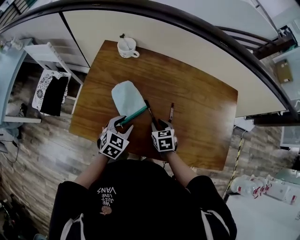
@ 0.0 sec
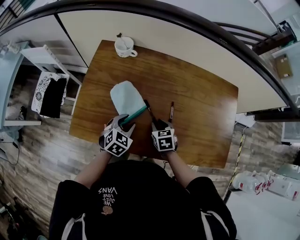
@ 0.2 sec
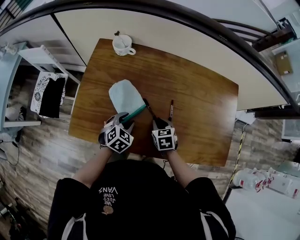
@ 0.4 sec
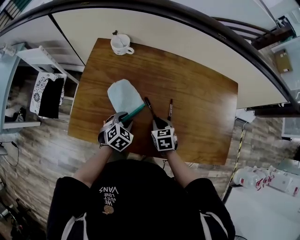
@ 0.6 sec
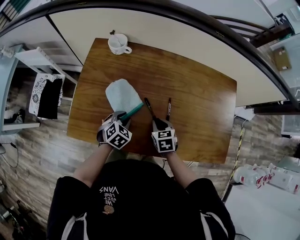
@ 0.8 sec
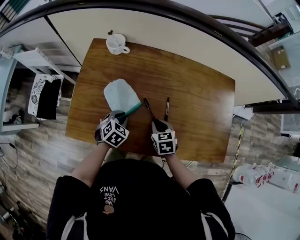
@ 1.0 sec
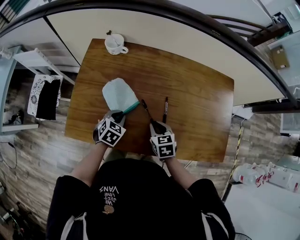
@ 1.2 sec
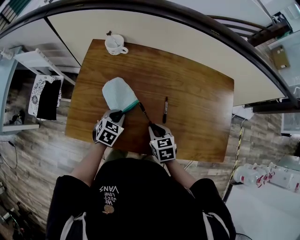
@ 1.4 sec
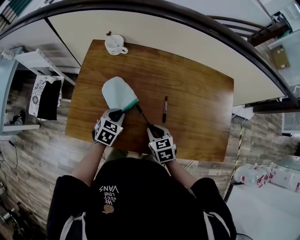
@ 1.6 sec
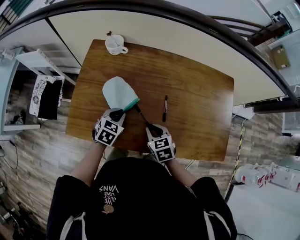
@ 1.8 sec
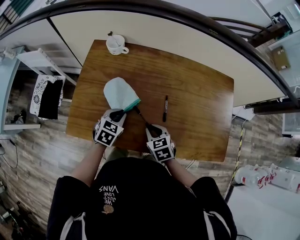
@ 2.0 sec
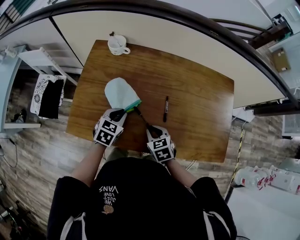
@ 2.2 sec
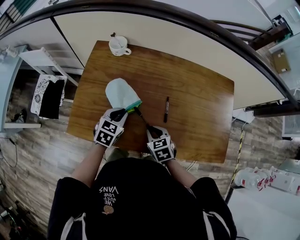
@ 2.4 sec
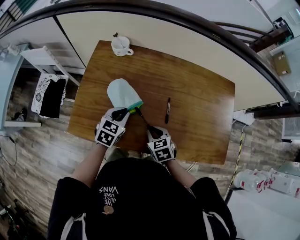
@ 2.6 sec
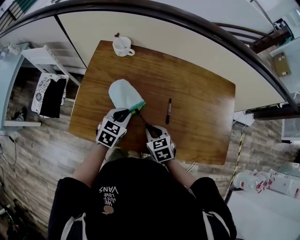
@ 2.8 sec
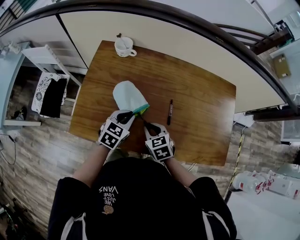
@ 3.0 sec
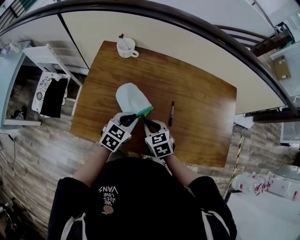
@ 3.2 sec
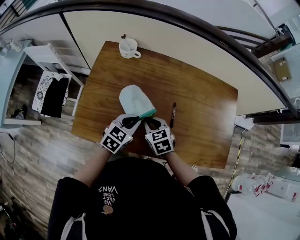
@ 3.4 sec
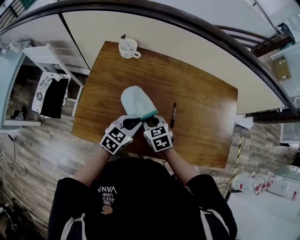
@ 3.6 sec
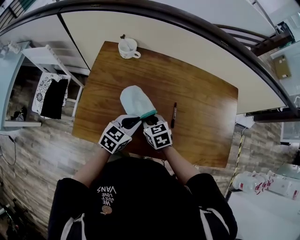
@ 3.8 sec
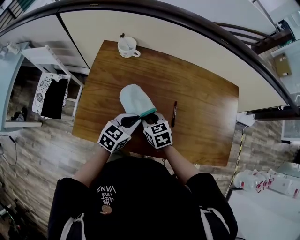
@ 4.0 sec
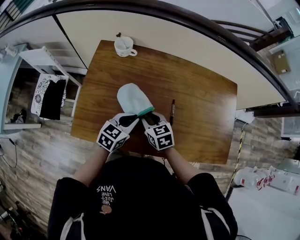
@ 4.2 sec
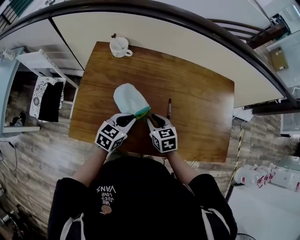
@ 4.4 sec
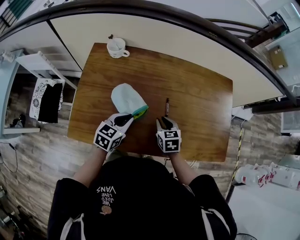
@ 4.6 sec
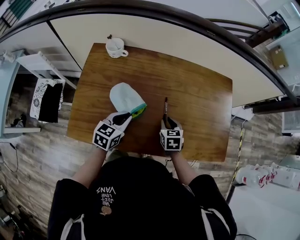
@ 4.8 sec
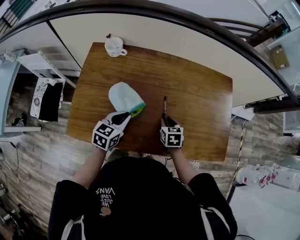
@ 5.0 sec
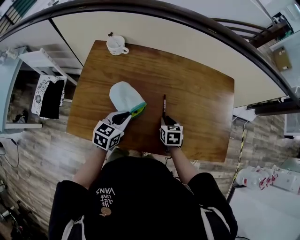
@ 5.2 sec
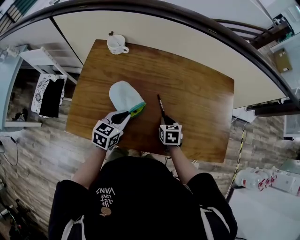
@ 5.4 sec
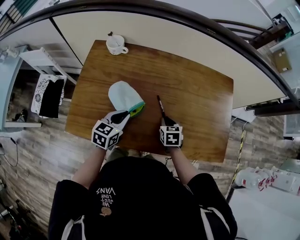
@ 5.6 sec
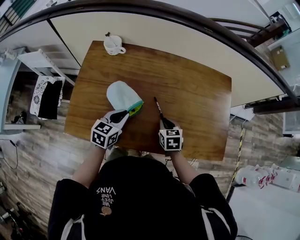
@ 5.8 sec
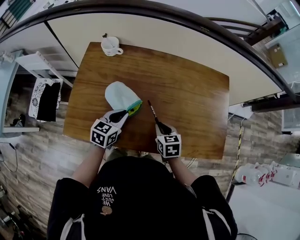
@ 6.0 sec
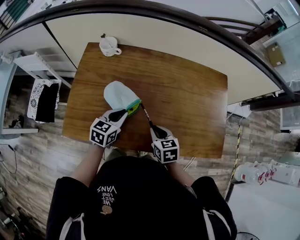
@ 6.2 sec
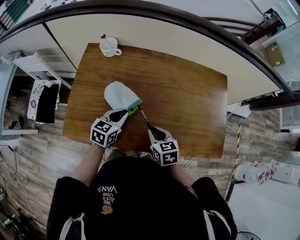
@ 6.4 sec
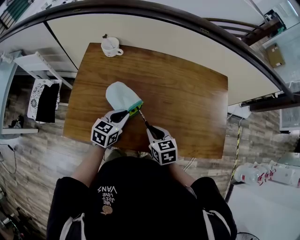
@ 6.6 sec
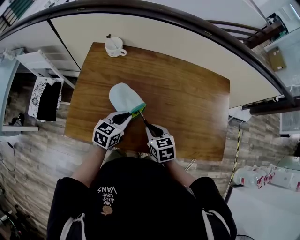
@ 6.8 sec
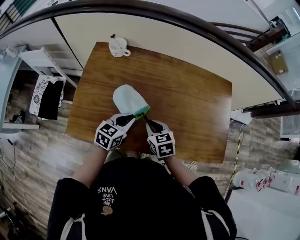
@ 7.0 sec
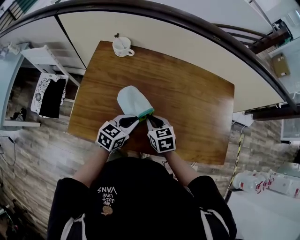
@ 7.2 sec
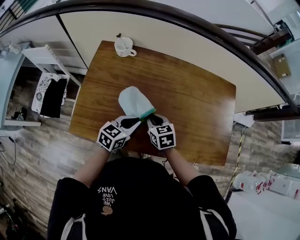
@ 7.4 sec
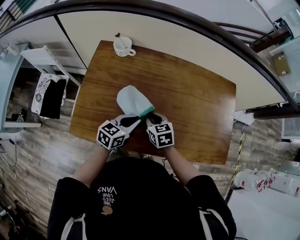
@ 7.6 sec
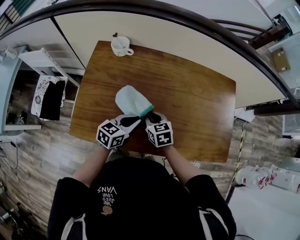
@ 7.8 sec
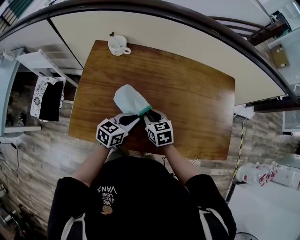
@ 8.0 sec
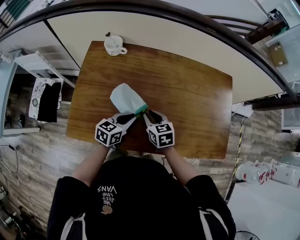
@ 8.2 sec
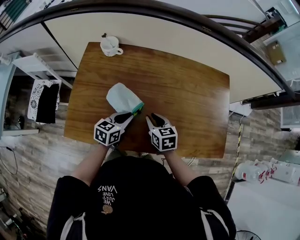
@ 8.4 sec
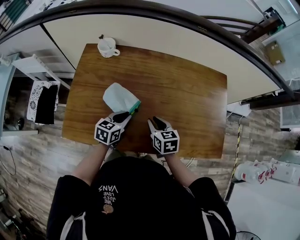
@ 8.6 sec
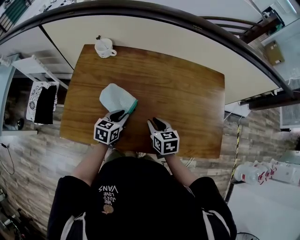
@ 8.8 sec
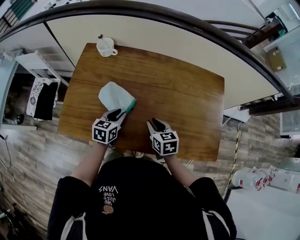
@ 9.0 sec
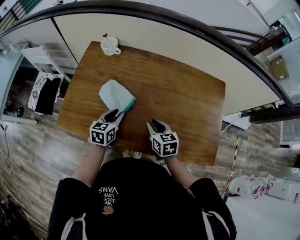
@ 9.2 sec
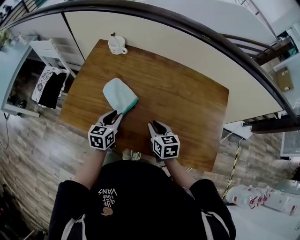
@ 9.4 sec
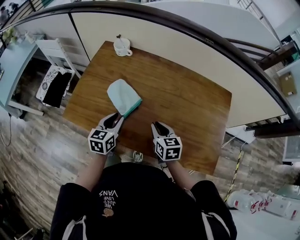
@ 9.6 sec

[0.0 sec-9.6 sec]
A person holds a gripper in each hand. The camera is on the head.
0.0 sec to 1.6 sec: The right gripper travels backward by approximately 5 cm, while the left gripper closes.
1.6 sec to 3.2 sec: The left gripper goes roughly 5 cm upward, while the right gripper travels to the left by roughly 5 cm.
3.2 sec to 4.8 sec: The right gripper shifts roughly 15 cm to the right, and changes its angle by roughly 20 degrees.
4.8 sec to 6.4 sec: The right gripper shifts approximately 10 cm backward and upward.
6.4 sec to 8.0 sec: The right gripper moves to the left and forward, approximately 10 cm.
8.0 sec to 9.6 sec: The right gripper moves to the right and backward, roughly 15 cm, while the left gripper changes its angle by roughly 40 degrees.

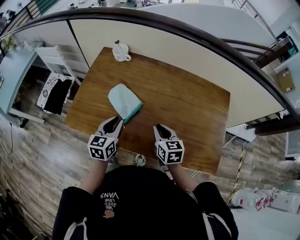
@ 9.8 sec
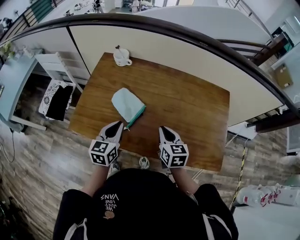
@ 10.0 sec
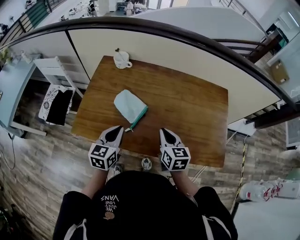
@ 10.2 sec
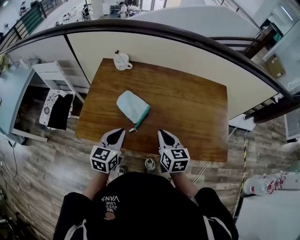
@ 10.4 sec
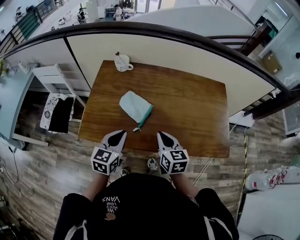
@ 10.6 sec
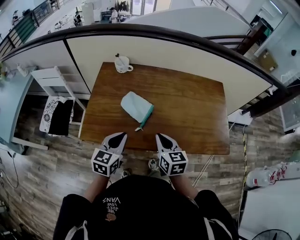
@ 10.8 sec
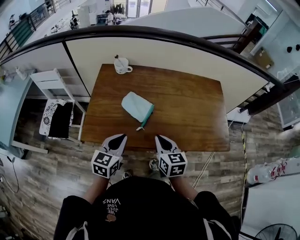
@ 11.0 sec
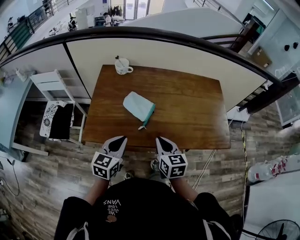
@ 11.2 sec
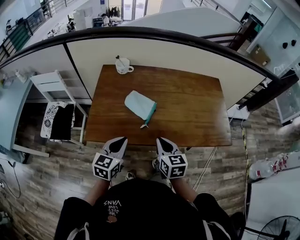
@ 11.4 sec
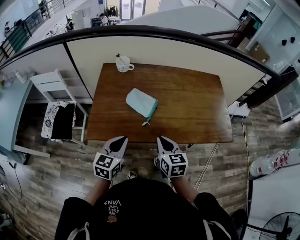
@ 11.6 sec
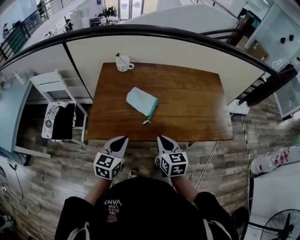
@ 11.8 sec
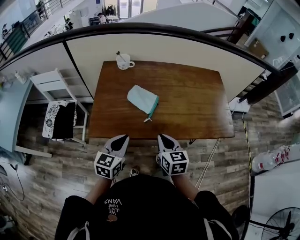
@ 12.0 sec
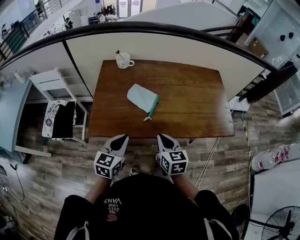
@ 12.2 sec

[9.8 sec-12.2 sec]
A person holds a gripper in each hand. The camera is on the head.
9.8 sec to 11.0 sec: The two grippers go some 15 cm backward, to the left and upward. The left gripper rotates about 20 degrees.
11.0 sec to 12.2 sec: Both grippers move backward, approximately 5 cm.

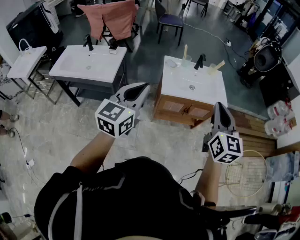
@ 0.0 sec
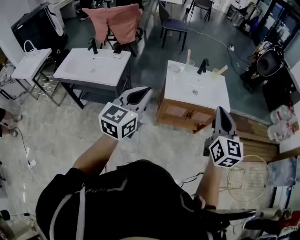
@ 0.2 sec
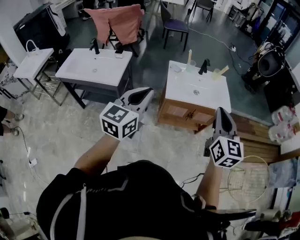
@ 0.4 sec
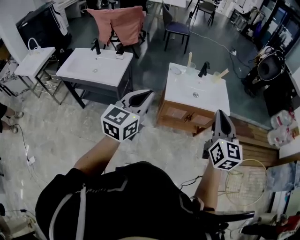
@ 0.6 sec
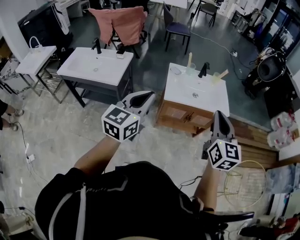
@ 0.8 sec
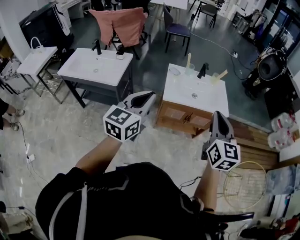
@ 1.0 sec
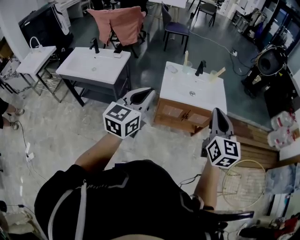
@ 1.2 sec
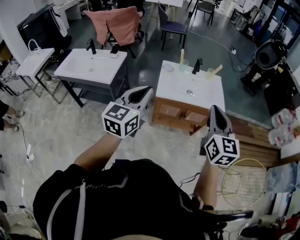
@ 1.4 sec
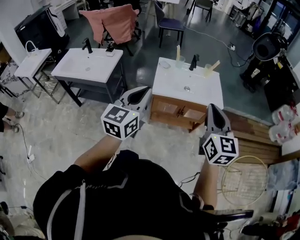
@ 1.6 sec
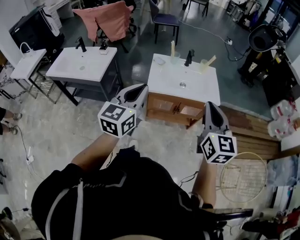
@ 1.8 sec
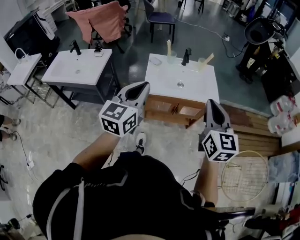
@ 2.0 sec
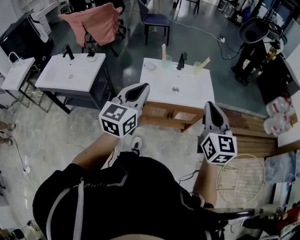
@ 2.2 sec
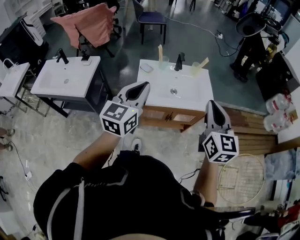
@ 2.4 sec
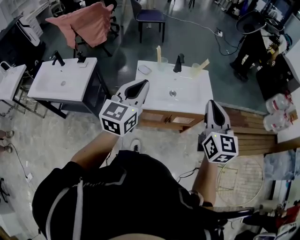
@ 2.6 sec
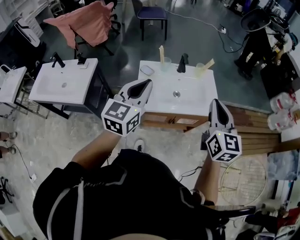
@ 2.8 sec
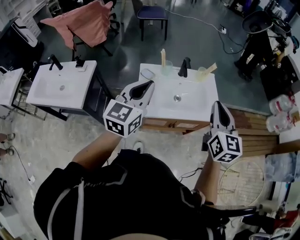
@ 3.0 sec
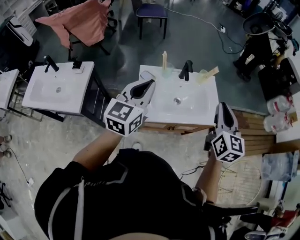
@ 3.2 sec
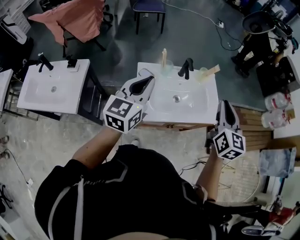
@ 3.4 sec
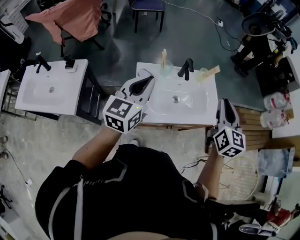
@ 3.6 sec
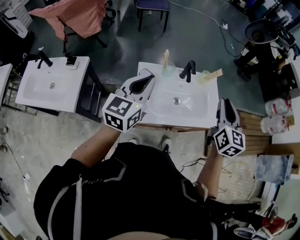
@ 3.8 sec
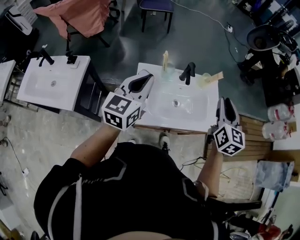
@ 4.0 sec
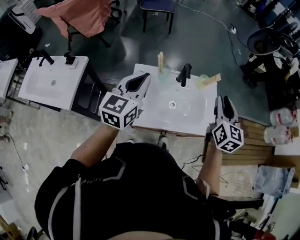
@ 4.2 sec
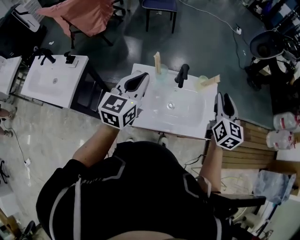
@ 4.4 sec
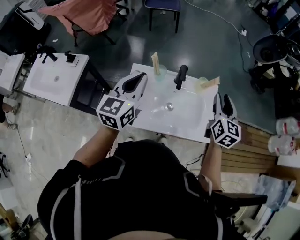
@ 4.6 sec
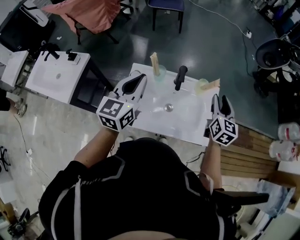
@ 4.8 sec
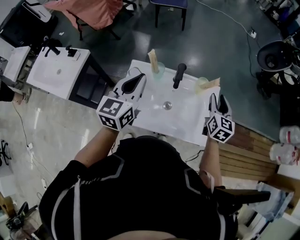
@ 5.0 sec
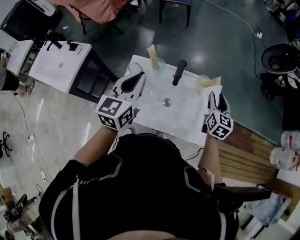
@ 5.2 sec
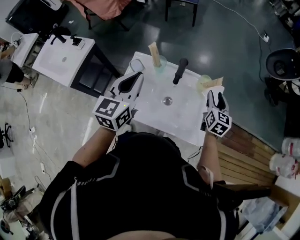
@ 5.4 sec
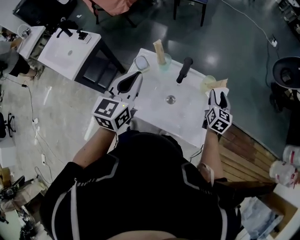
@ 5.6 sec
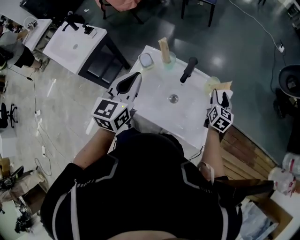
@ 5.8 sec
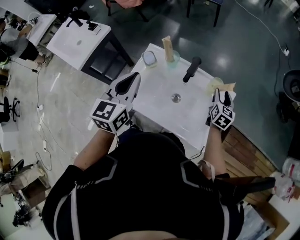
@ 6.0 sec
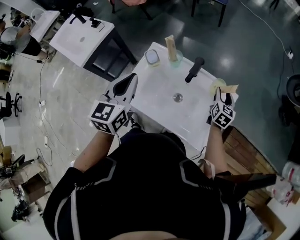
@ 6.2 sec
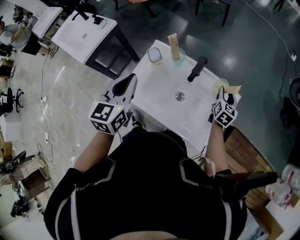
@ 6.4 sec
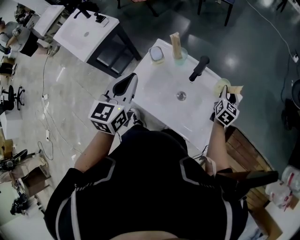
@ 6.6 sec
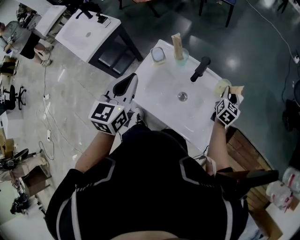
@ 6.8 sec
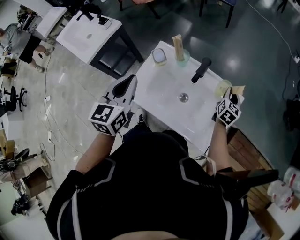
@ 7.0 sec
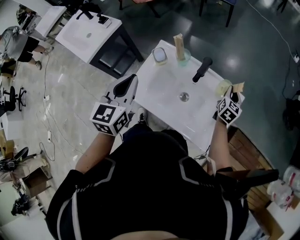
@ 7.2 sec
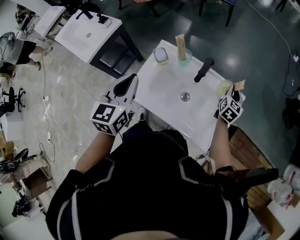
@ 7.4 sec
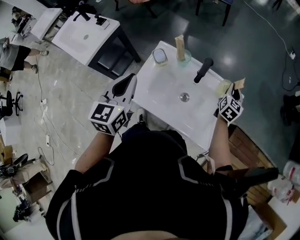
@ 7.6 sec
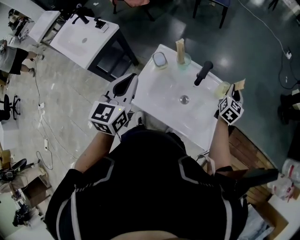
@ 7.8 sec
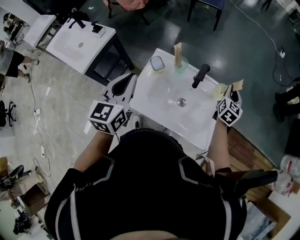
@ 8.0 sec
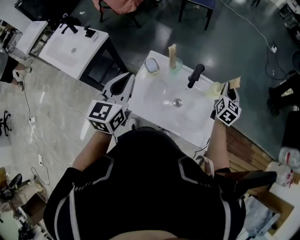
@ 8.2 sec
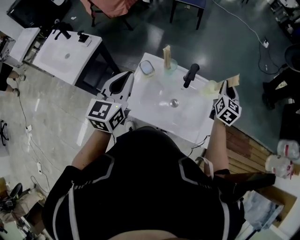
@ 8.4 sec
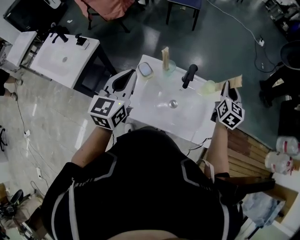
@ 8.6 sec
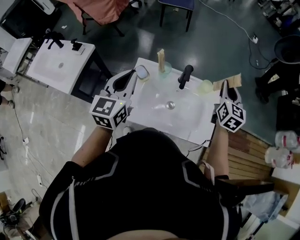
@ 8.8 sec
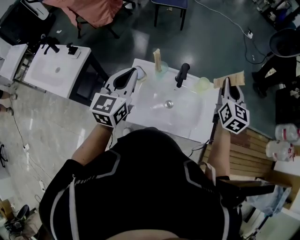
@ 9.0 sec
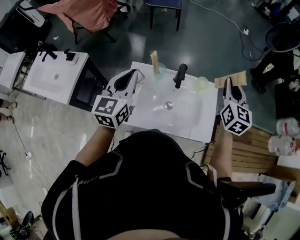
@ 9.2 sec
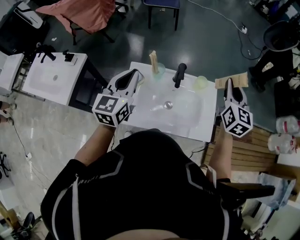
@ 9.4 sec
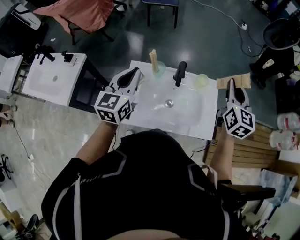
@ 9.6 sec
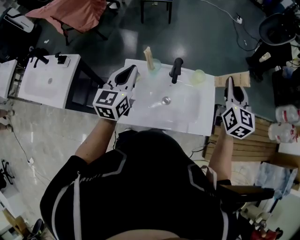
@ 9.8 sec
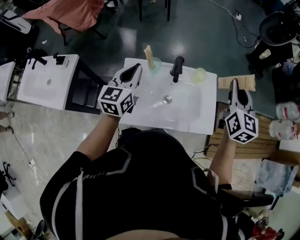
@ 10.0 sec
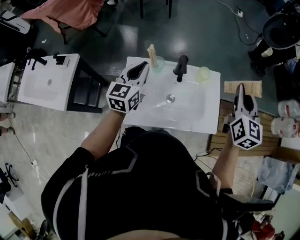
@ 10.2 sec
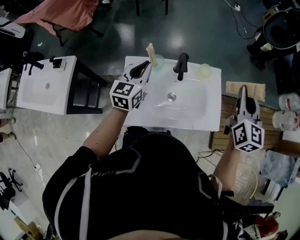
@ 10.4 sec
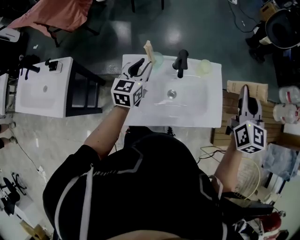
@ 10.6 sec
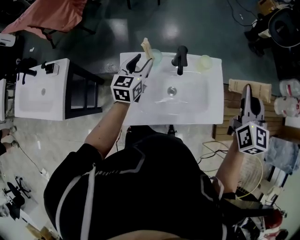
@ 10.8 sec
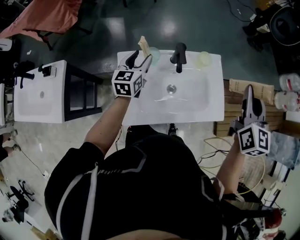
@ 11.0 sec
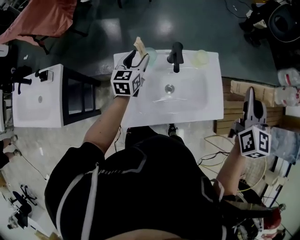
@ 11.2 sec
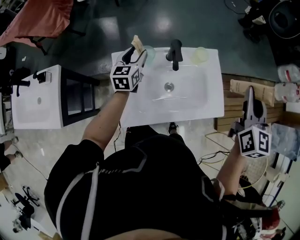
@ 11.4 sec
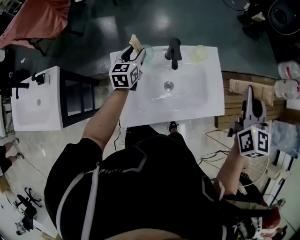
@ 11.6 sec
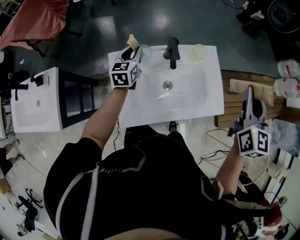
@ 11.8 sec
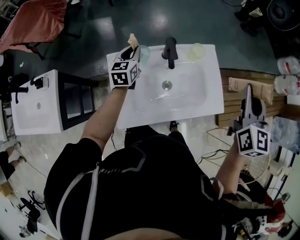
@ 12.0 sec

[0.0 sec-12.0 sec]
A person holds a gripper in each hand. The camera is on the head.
0.0 sec to 1.6 sec: Both grippers travel together to the right, some 10 cm.
1.6 sec to 3.0 sec: The grippers both shift forward by about 30 cm.
3.0 sec to 4.4 sec: Both grippers travel together forward, roughly 20 cm. The right gripper opens up.
4.4 sec to 6.0 sec: The left gripper ends up some 5 cm from where it was, and turns by about 30 degrees, while the right gripper is displaced downward and forward by roughly 30 cm, and turns by about 20 degrees.
6.0 sec to 7.6 sec: The right gripper closes its fingers. The left gripper shifts some 5 cm to the left.
7.6 sec to 9.0 sec: The right gripper moves upward and backward, roughly 25 cm; the left gripper moves forward, some 5 cm, and rotates some 20 degrees.
9.0 sec to 10.4 sec: The right gripper heads backward, covering about 5 cm. Meanwhile the left gripper goes roughly 15 cm downward and forward.
10.4 sec to 12.0 sec: The left gripper heads downward and forward, covering approximately 15 cm, and opens, then closes once more. Meanwhile the right gripper changes place by approximately 5 cm.
